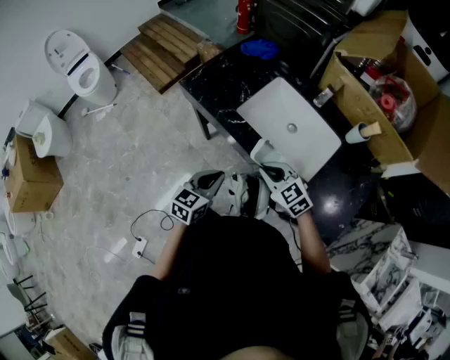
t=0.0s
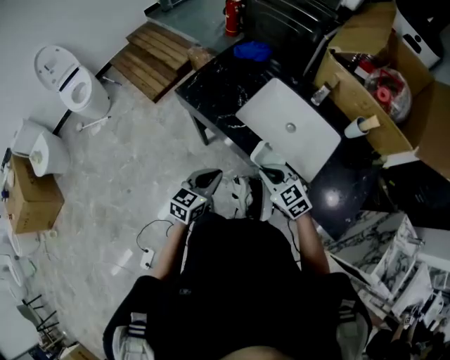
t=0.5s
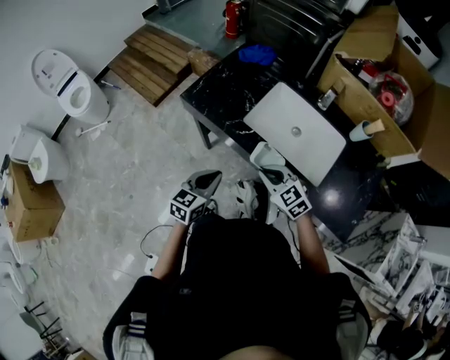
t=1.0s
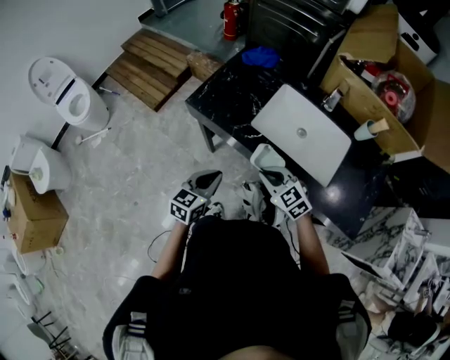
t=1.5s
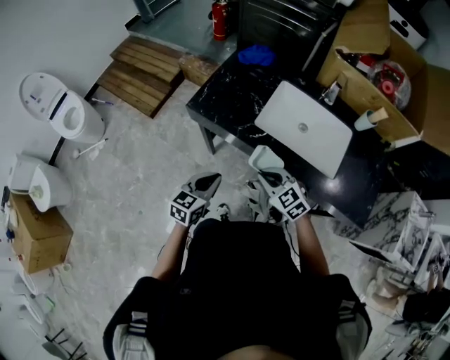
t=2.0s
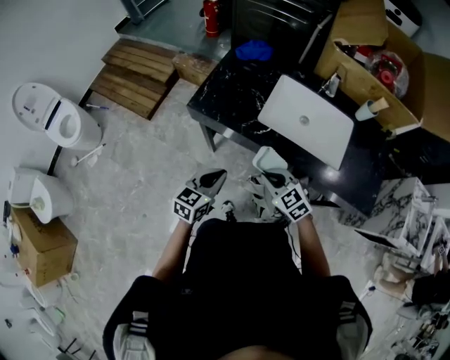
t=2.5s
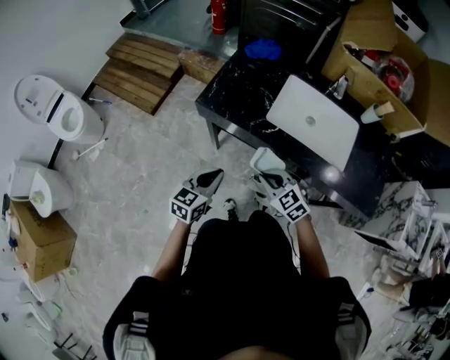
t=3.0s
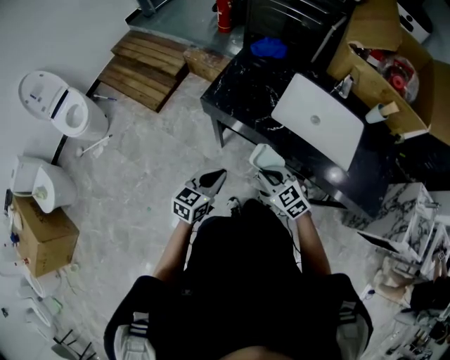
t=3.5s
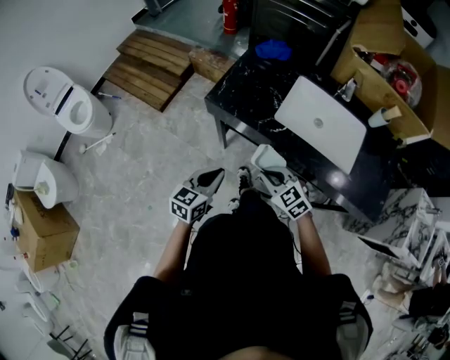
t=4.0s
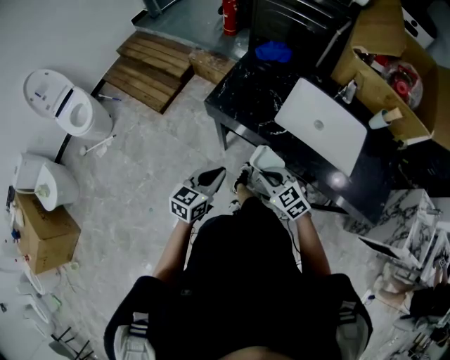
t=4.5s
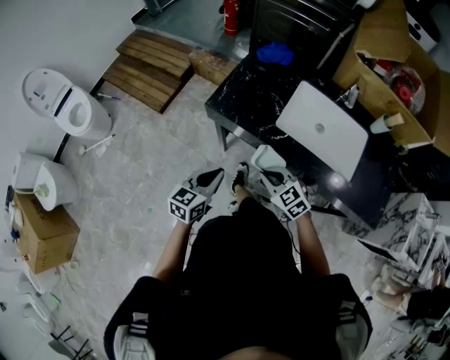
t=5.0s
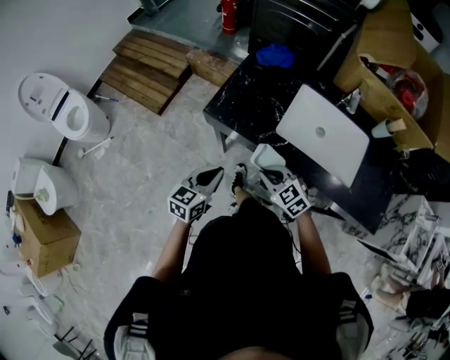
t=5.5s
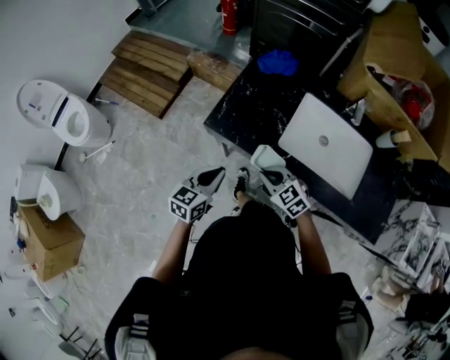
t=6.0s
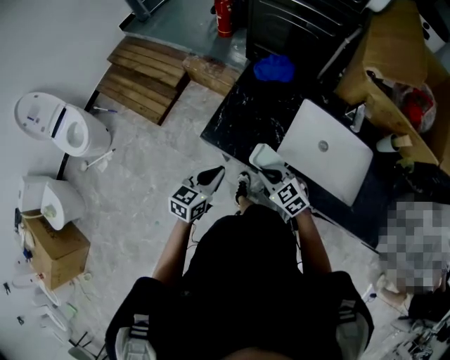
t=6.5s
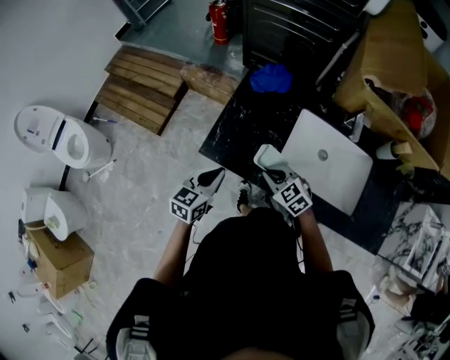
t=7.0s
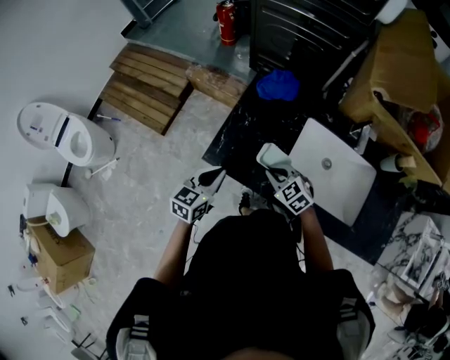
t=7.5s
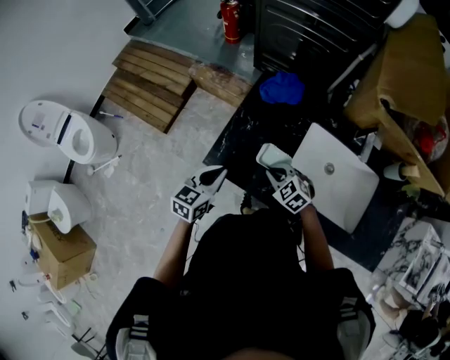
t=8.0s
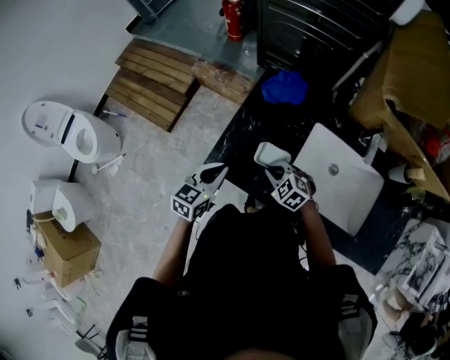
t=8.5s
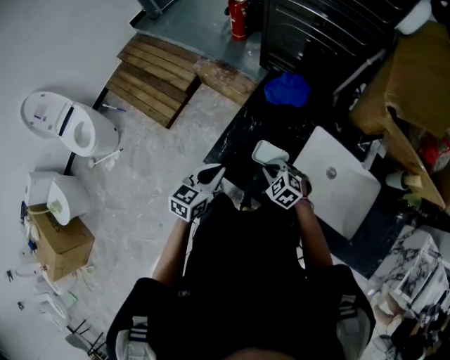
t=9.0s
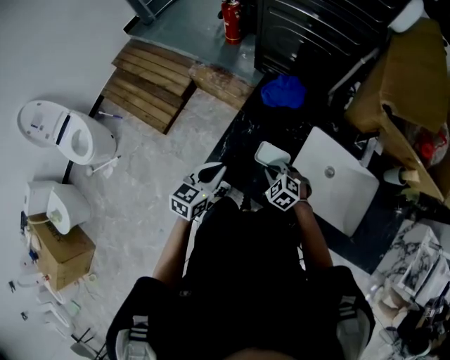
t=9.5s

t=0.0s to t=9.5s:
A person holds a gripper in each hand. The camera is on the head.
t=0.0s to t=2.0s: The right gripper heads to the left, covering roughly 15 cm; the left gripper heads to the left and forward, covering approximately 15 cm.
t=2.0s to t=4.0s: Both grippers move to the left, roughly 5 cm.
t=4.0s to t=5.5s: Both grippers move forward, some 5 cm.
t=5.5s to t=7.5s: Both grippers travel together forward, some 20 cm.
t=7.5s to t=9.5s: The right gripper is displaced downward by roughly 5 cm.

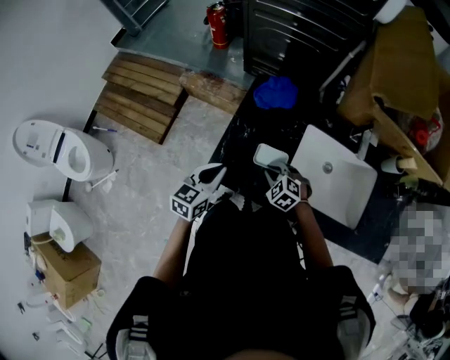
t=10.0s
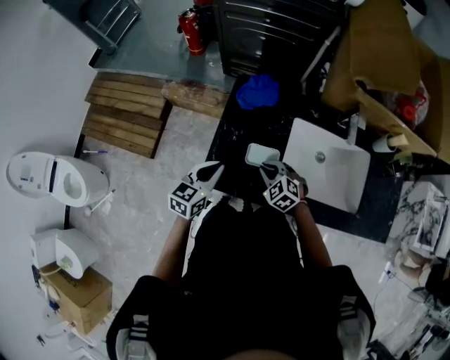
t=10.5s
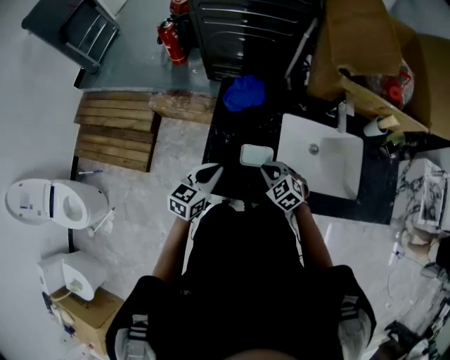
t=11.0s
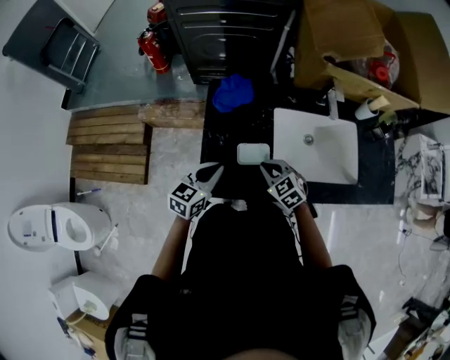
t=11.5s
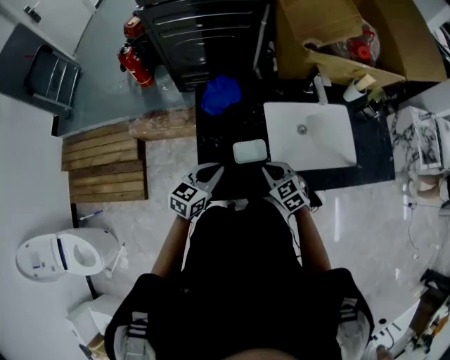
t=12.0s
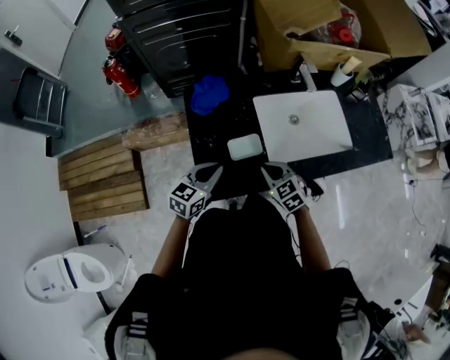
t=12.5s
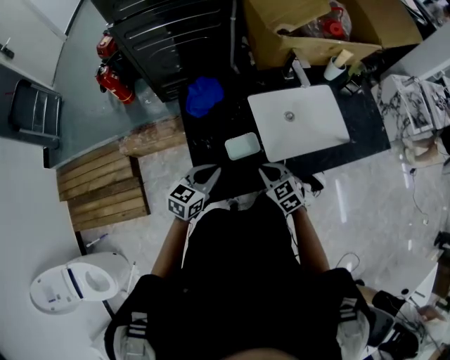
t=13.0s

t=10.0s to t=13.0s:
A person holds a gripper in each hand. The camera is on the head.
t=10.0s to t=11.5s: The right gripper shifts roughly 5 cm upward, and rotates about 30 degrees. Meanwhile the left gripper moves roughly 5 cm, and rotates about 20 degrees.
t=11.5s to t=13.0s: The right gripper ends up roughly 5 cm from where it was, and changes its angle by about 20 degrees.

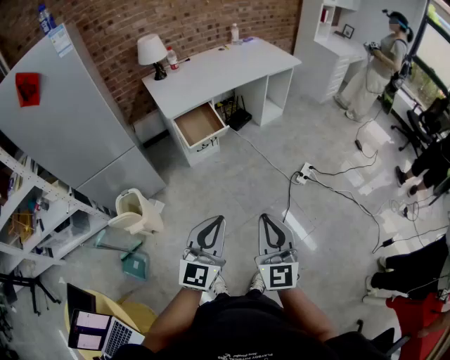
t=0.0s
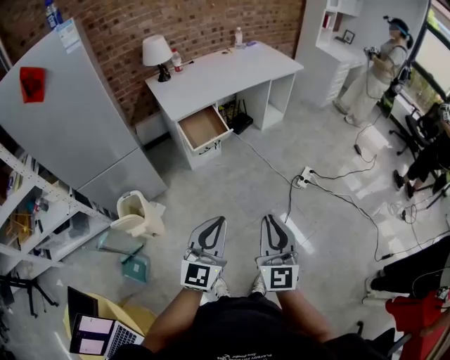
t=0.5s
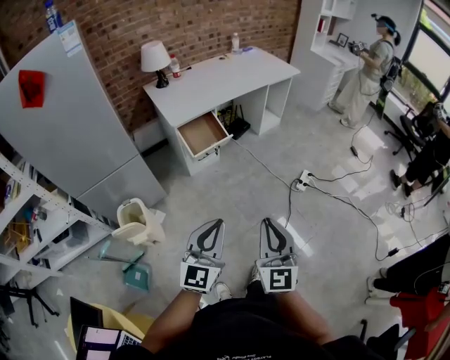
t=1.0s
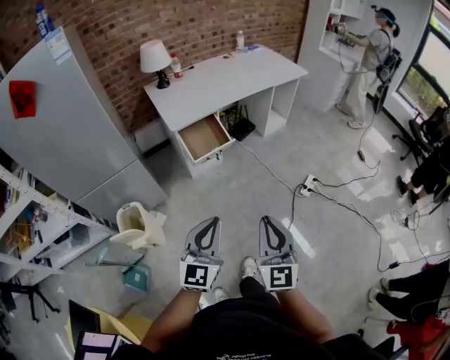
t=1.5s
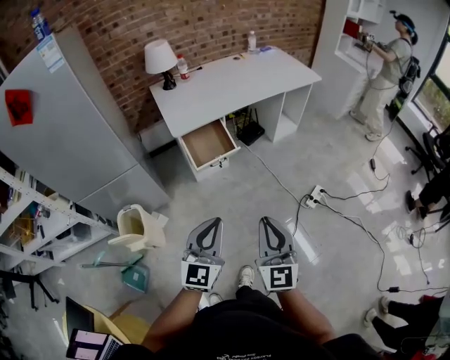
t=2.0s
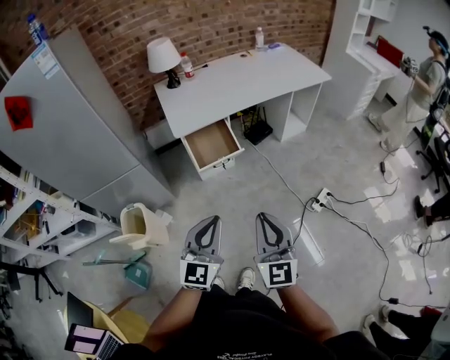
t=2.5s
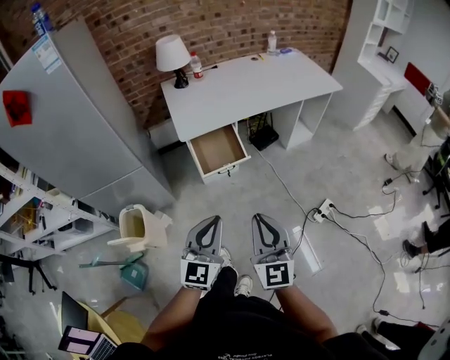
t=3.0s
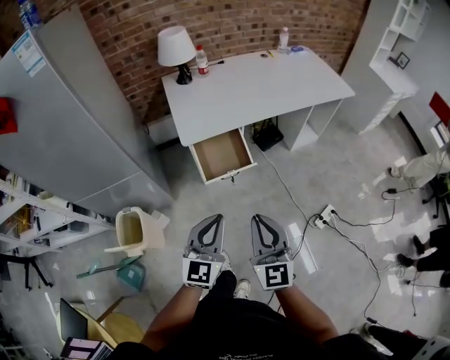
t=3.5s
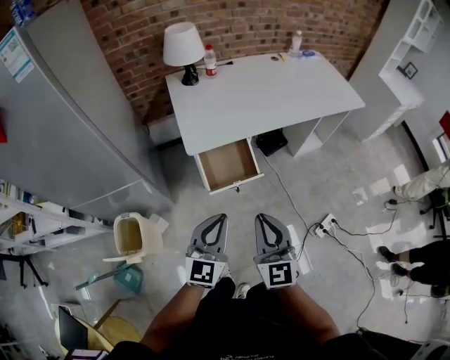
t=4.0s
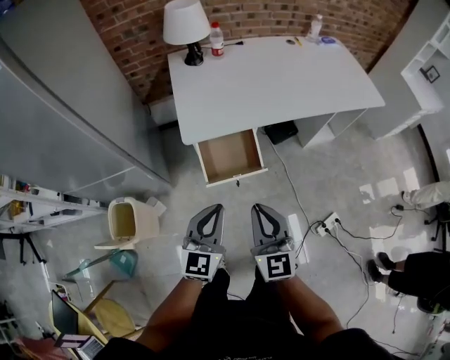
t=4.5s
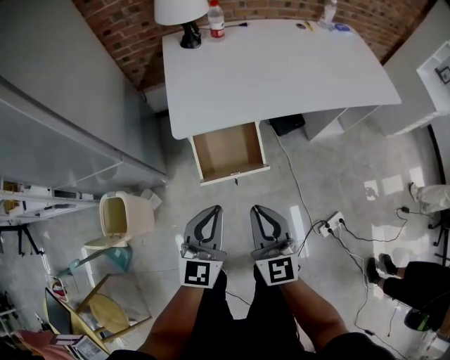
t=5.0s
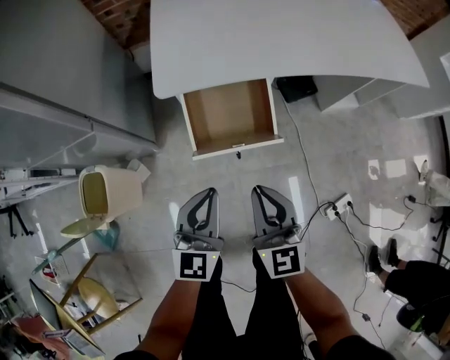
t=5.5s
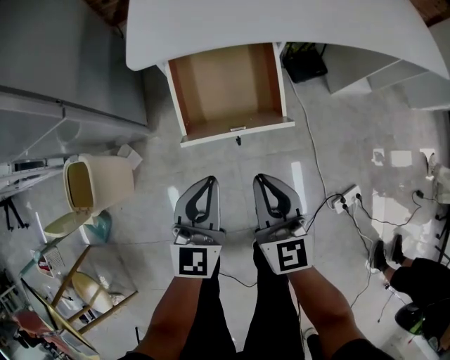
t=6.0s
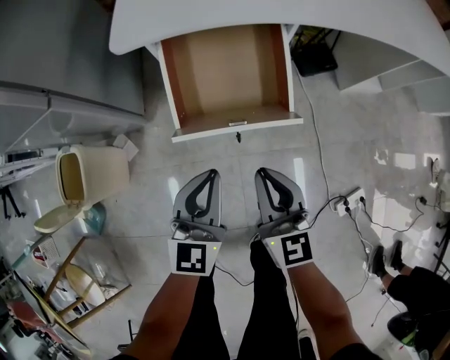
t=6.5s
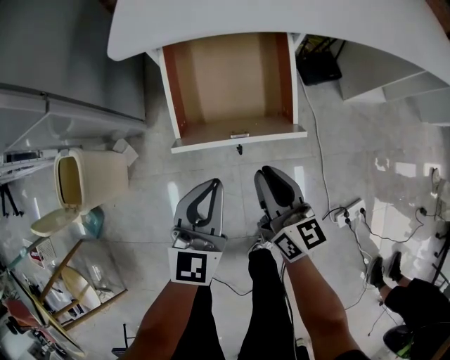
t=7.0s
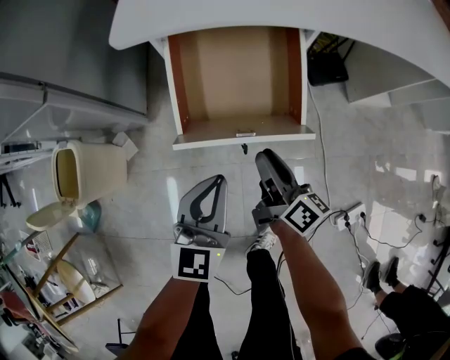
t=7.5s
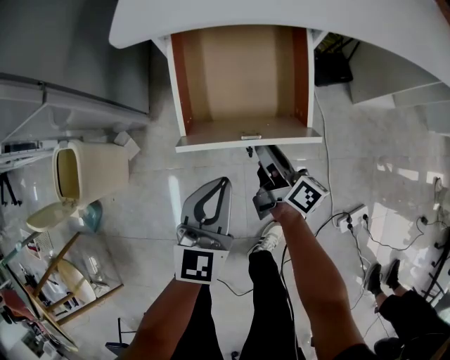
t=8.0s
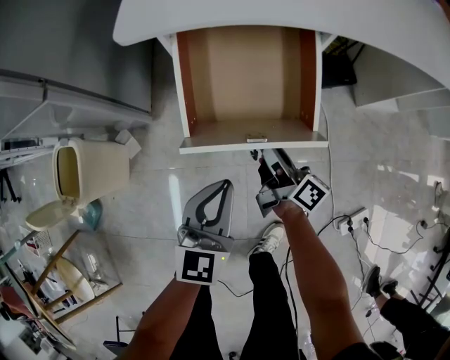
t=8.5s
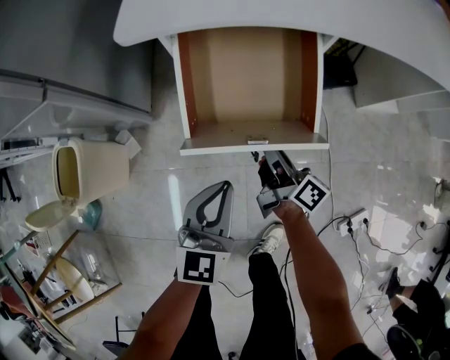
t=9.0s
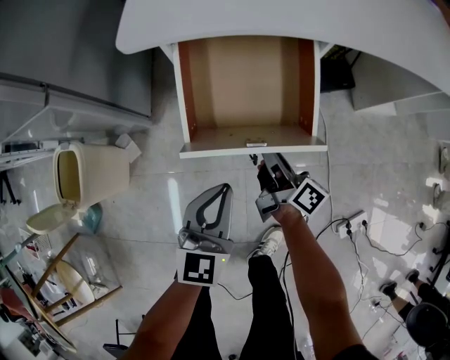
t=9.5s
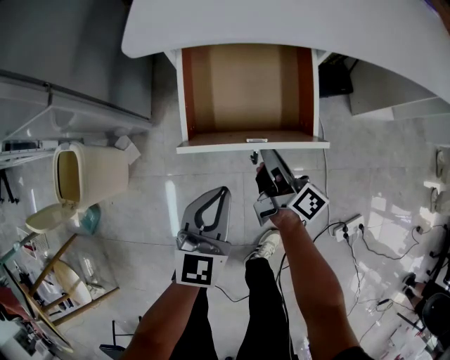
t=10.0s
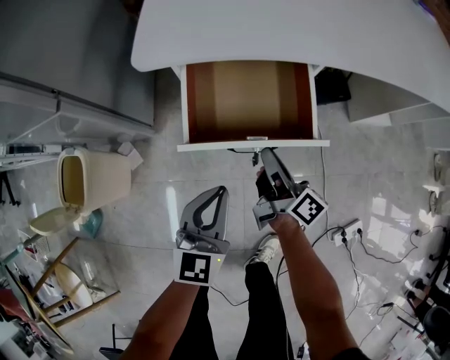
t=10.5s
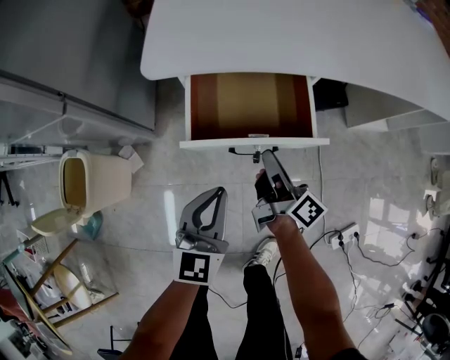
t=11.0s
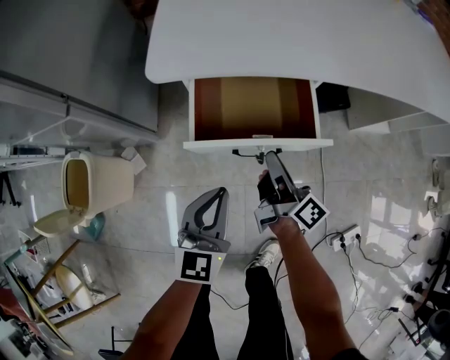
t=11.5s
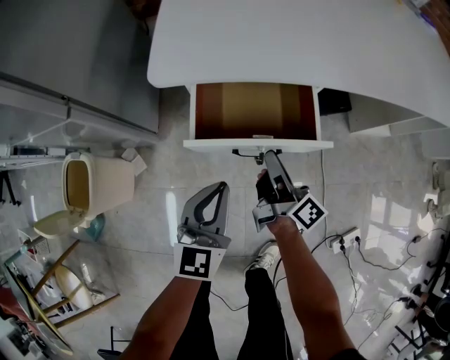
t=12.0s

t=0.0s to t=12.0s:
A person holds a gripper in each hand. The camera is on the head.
t=0.0s to t=2.0s: The grippers both shift forward by approximately 15 cm.
t=2.0s to t=4.0s: Both grippers travel together forward, roughly 25 cm.
t=4.0s to t=6.0s: The right gripper goes roughly 35 cm downward and forward, and swivels about 20 degrees. The left gripper heads downward, covering roughly 30 cm, and turns by some 20 degrees.
t=6.0s to t=8.0s: The left gripper travels downward by about 10 cm; the right gripper goes about 20 cm downward and forward, rolls clockwise, seen from behind, by approximately 60 degrees, and opens its fingers.
t=8.0s to t=10.0s: The right gripper closes.
t=10.0s to t=12.0s: The right gripper moves approximately 5 cm. Meanwhile the left gripper travels forward by some 5 cm.

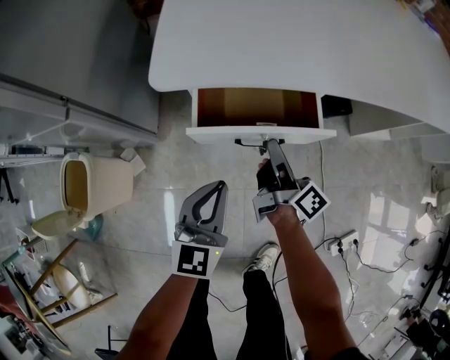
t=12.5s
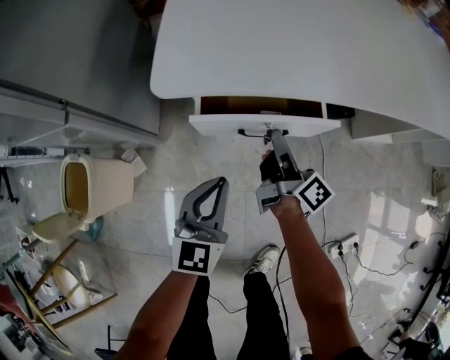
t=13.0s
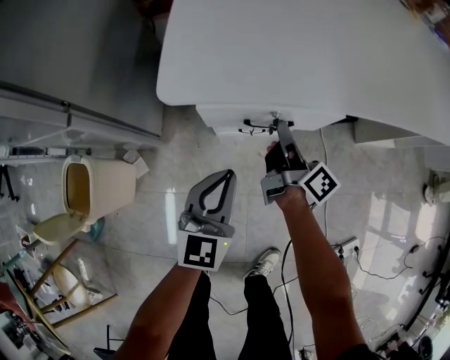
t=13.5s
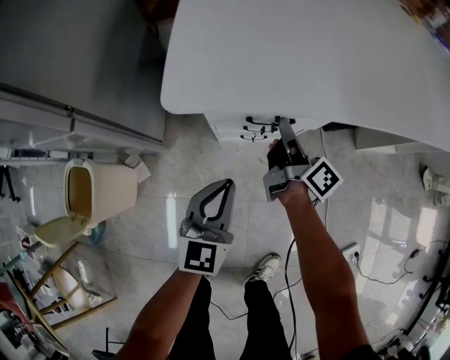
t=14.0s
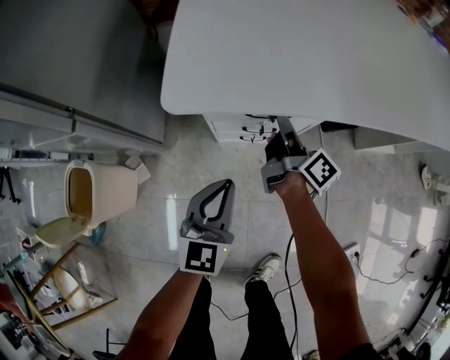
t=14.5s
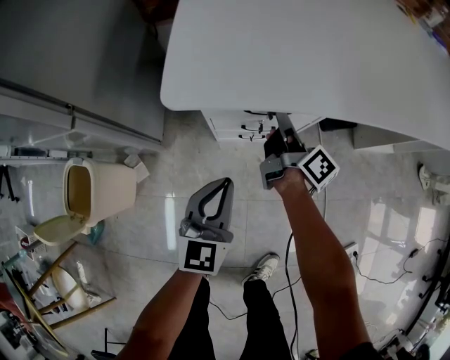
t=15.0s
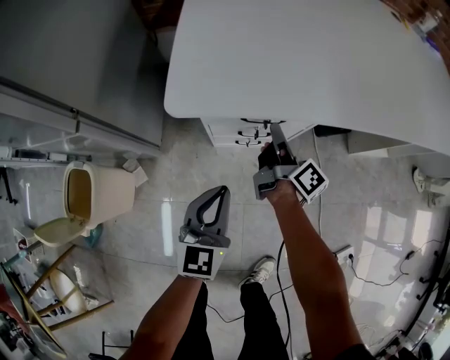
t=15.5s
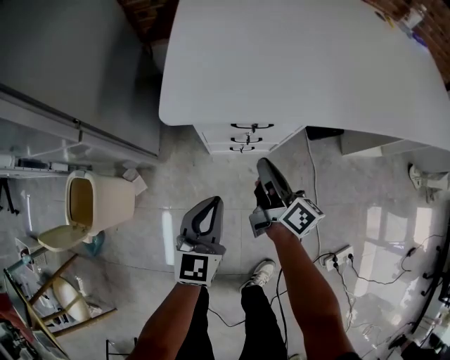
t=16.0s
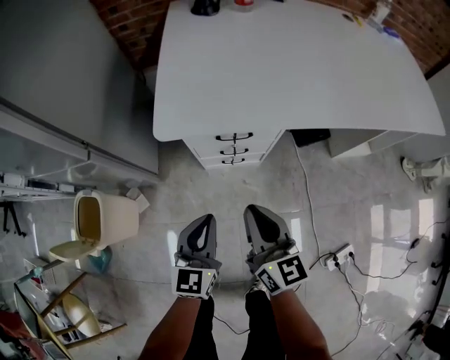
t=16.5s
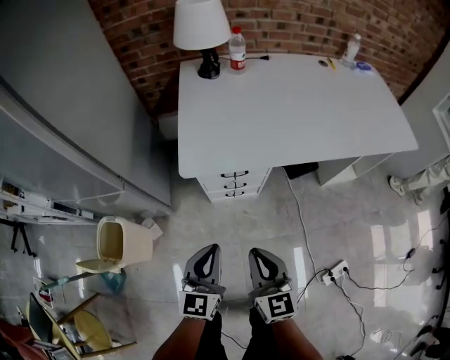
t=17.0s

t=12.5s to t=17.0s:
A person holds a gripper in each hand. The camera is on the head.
t=12.5s to t=14.5s: The right gripper moves forward, some 10 cm.
t=14.5s to t=17.0s: The left gripper travels upward and backward by some 25 cm. The right gripper shifts some 40 cm backward and upward, and twists about 60 degrees counterclockwise, seen from behind.
